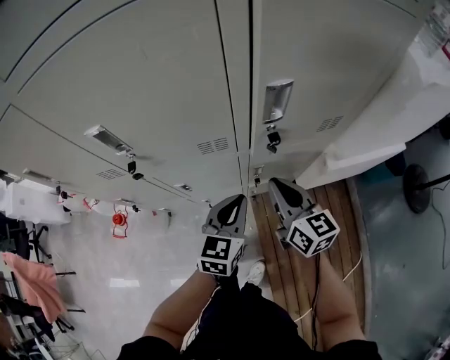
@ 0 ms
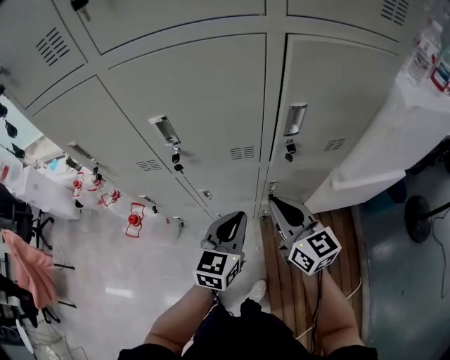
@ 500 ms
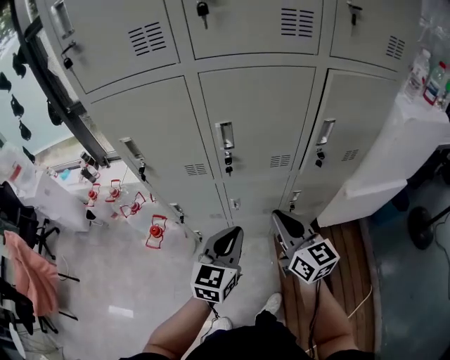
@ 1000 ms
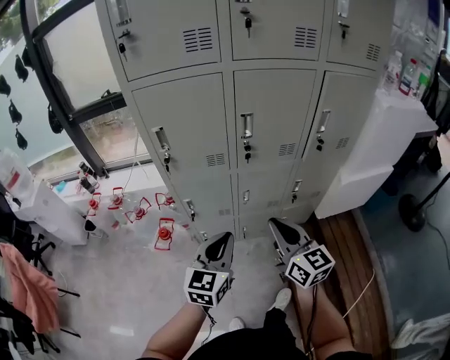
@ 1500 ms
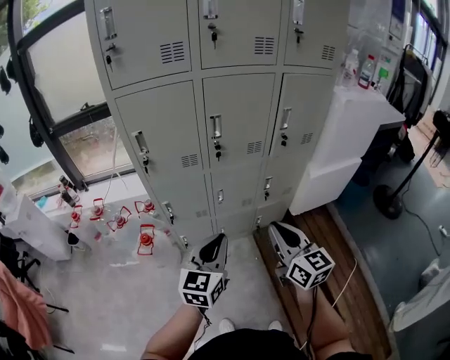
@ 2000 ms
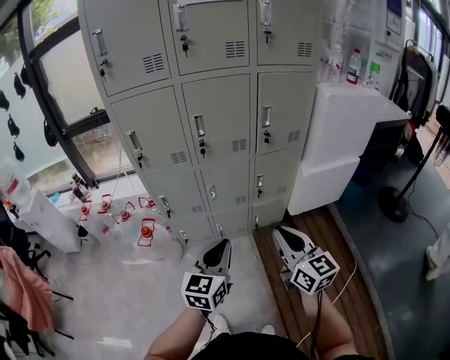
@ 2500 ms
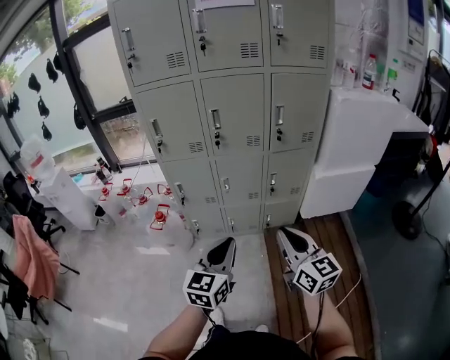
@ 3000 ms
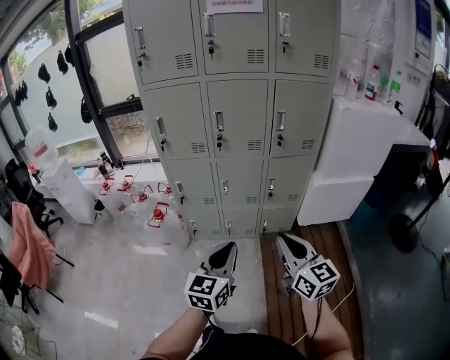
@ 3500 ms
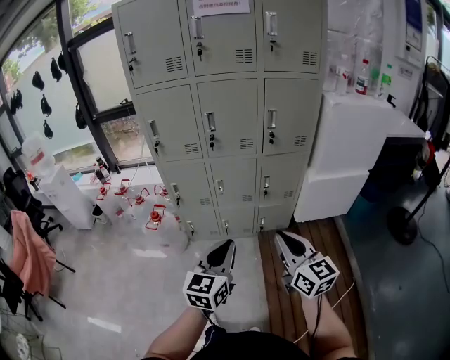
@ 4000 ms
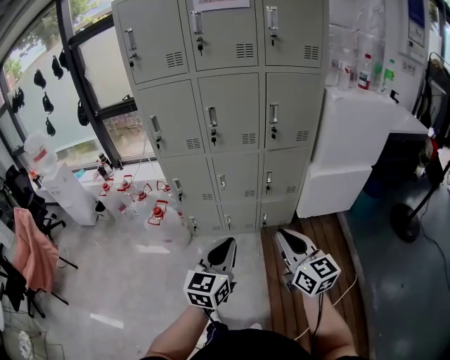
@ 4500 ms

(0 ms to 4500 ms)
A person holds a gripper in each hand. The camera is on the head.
0 ms - 2000 ms: The two grippers go roughly 40 cm backward, to the left and upward.
2000 ms - 4500 ms: Both grippers travel together backward and to the right, roughly 25 cm.

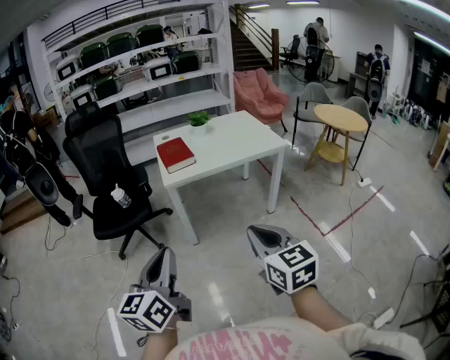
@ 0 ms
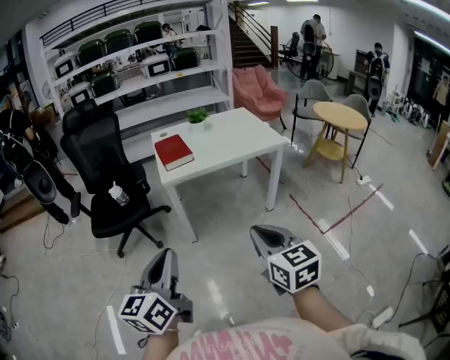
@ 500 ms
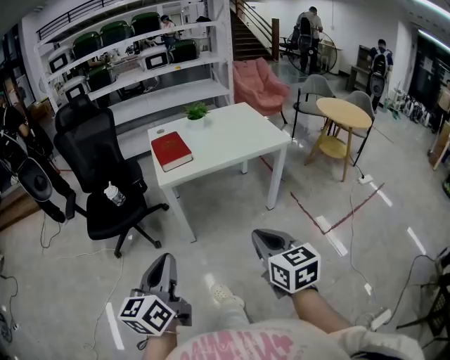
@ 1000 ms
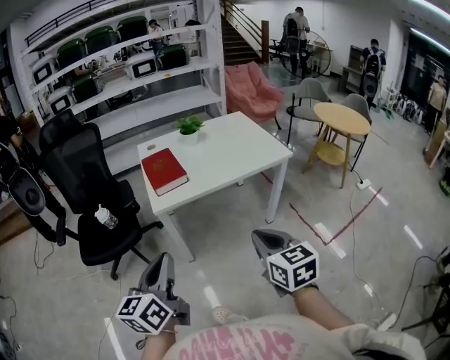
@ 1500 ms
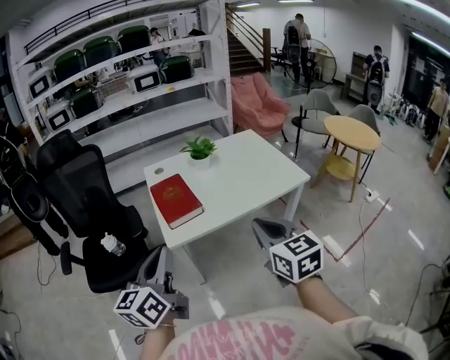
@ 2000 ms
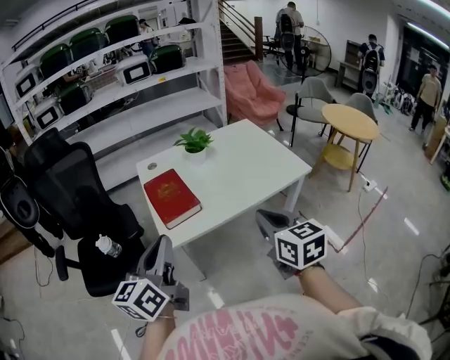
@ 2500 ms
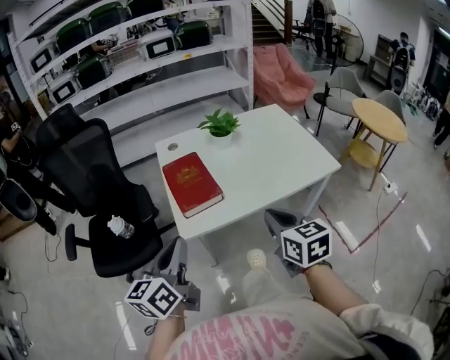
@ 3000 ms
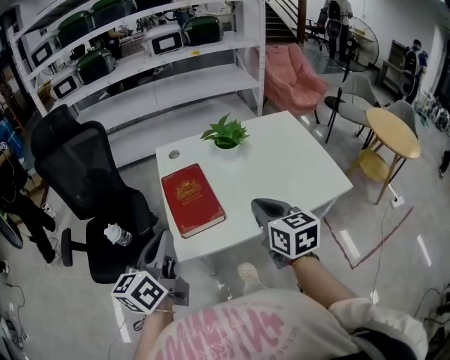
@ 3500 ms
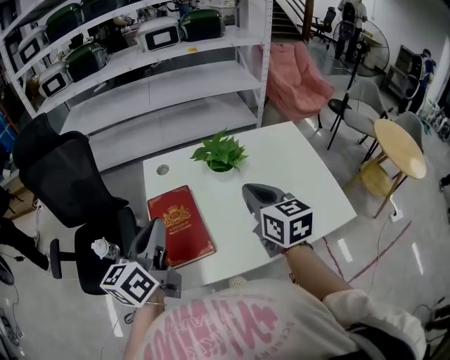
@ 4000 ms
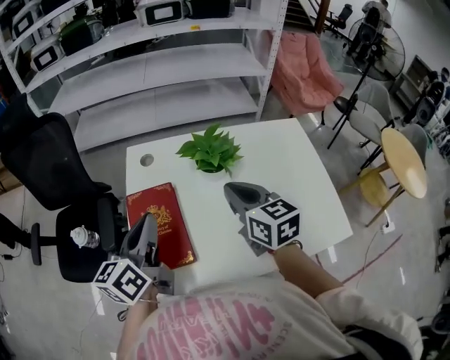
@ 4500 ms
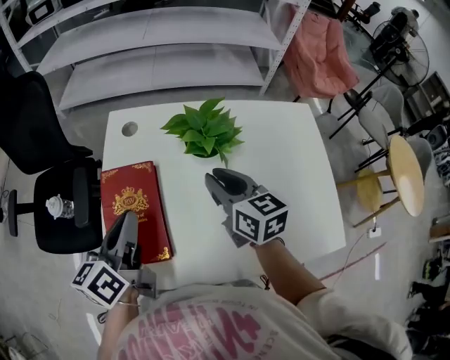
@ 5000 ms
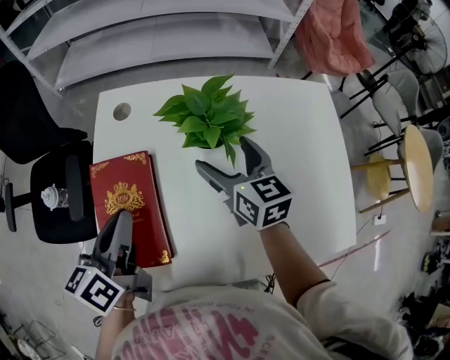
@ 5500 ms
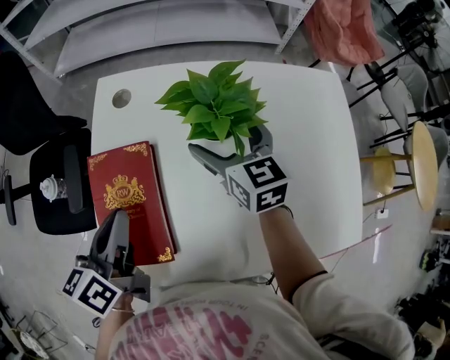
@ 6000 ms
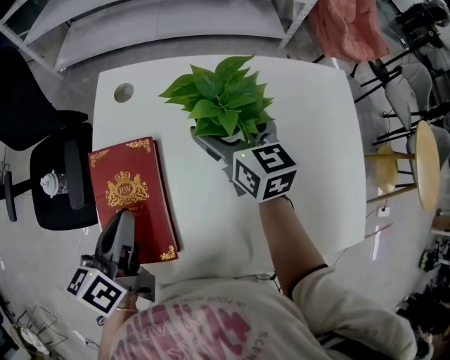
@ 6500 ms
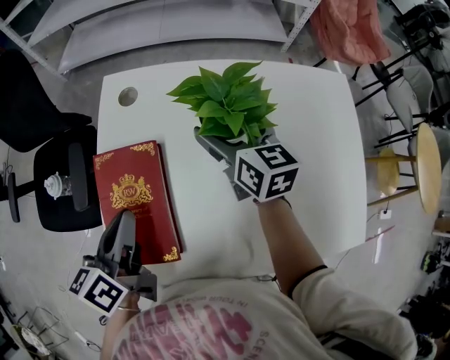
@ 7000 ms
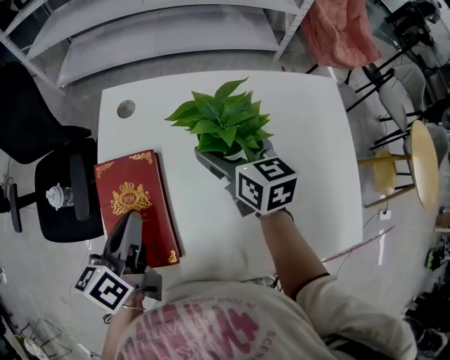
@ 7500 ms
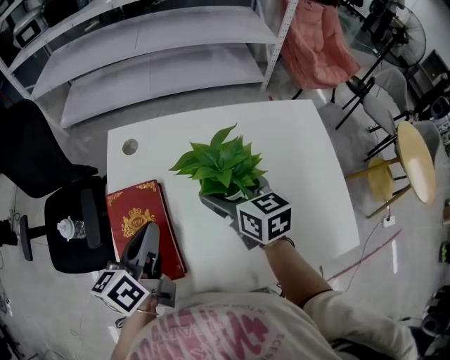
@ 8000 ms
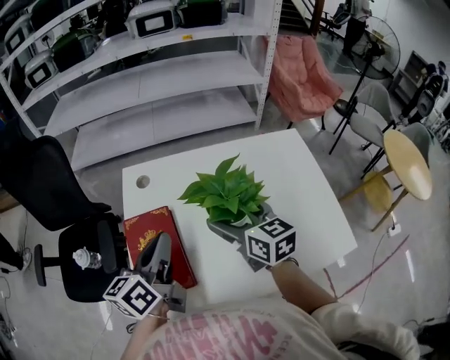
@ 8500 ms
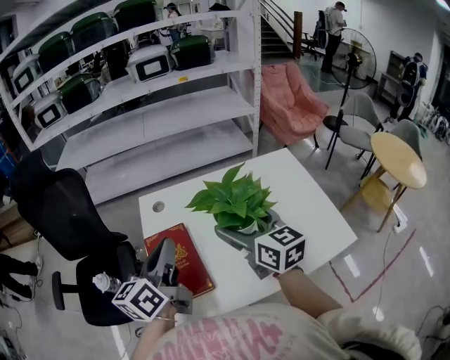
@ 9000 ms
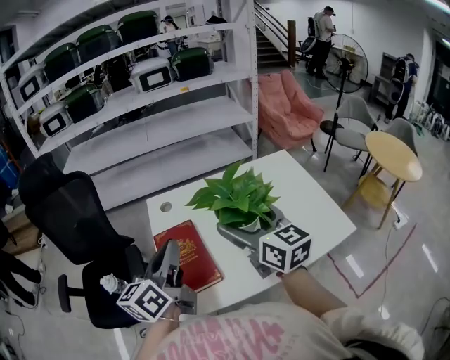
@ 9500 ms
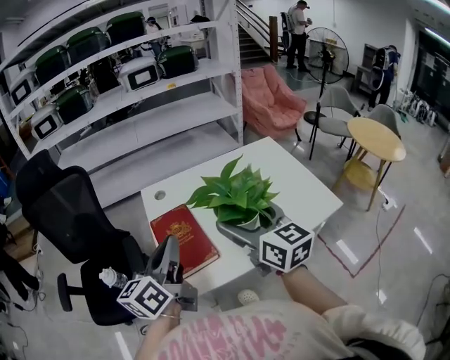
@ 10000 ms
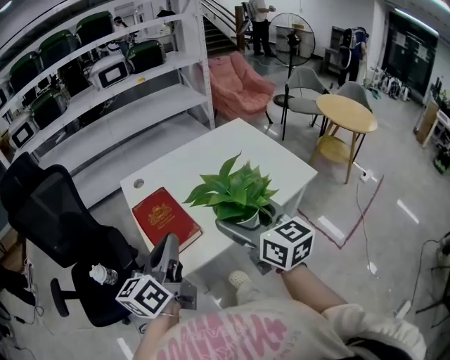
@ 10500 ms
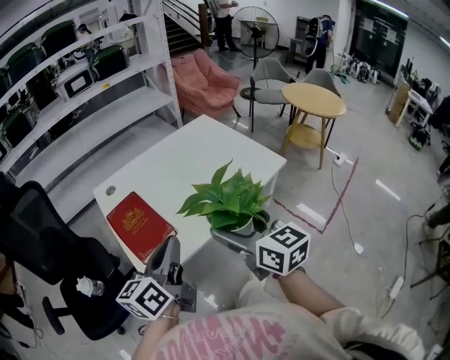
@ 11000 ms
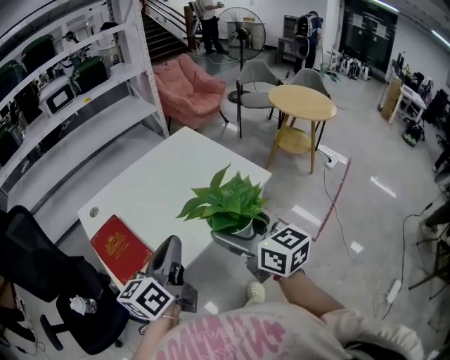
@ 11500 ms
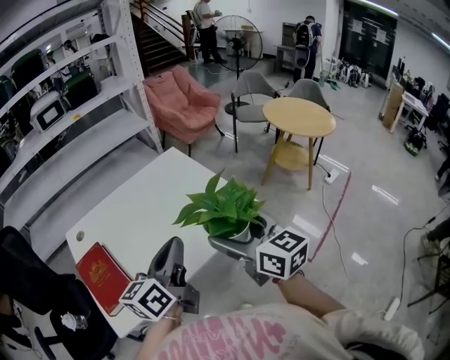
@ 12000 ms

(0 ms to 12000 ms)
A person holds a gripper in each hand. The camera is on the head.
0 ms - 2000 ms: Both grippers travel together forward, approximately 35 cm.
2000 ms - 4000 ms: The two grippers go about 35 cm forward.
4000 ms - 6000 ms: The right gripper is displaced forward and downward by about 25 cm, and opens, while the left gripper shifts about 15 cm downward and forward, and rotates approximately 20 degrees.
6000 ms - 8000 ms: The right gripper is displaced backward by about 5 cm; the left gripper shifts by about 5 cm.
8000 ms - 10000 ms: The left gripper is displaced backward and upward by approximately 20 cm, and turns by about 20 degrees, while the right gripper shifts roughly 30 cm backward and upward, and swivels about 30 degrees.
10000 ms - 12000 ms: Both grippers travel together to the right, approximately 30 cm. The left gripper changes its angle by some 20 degrees.

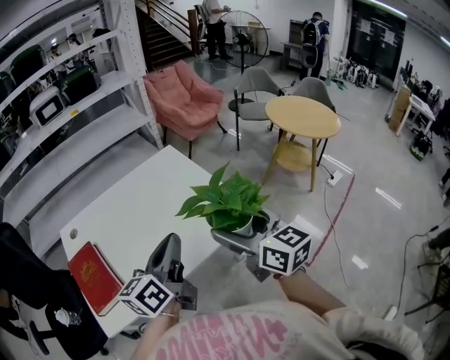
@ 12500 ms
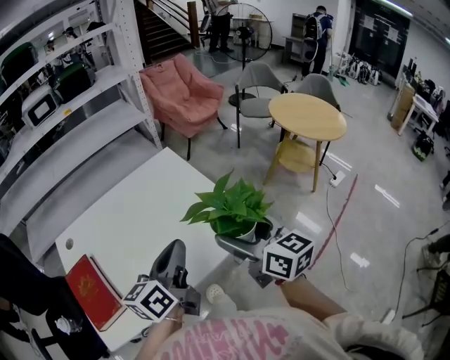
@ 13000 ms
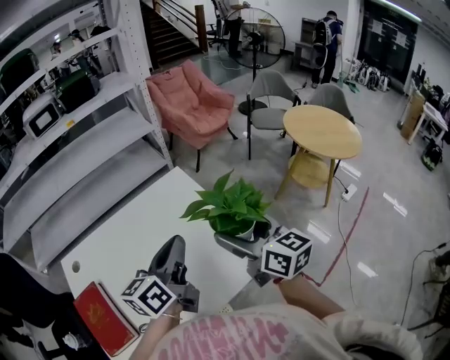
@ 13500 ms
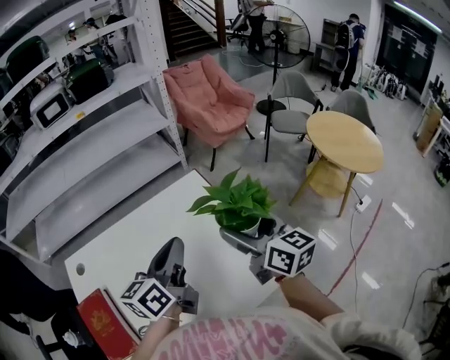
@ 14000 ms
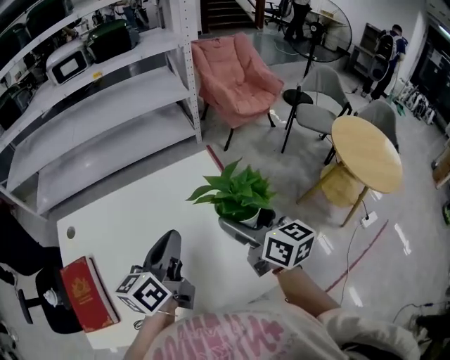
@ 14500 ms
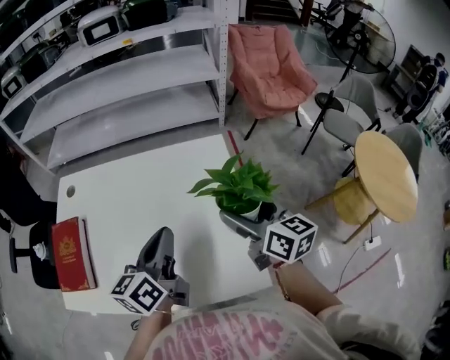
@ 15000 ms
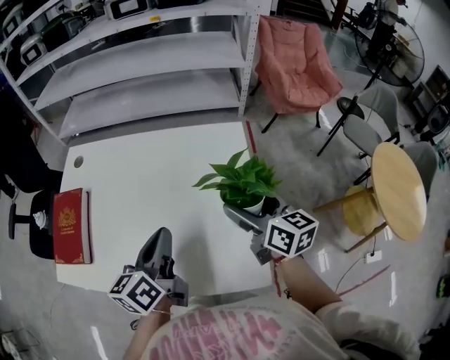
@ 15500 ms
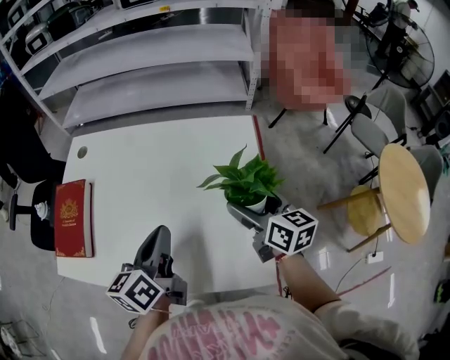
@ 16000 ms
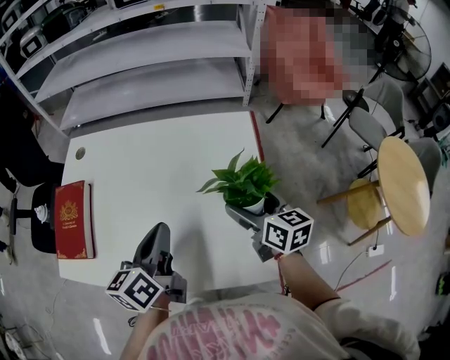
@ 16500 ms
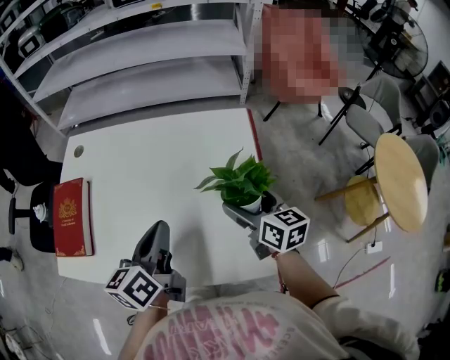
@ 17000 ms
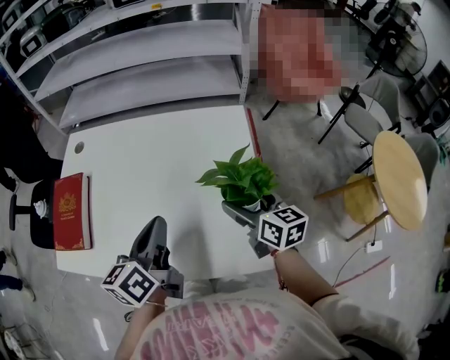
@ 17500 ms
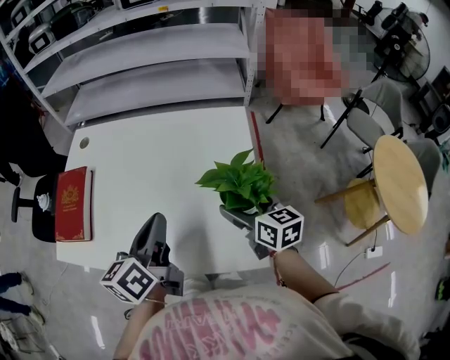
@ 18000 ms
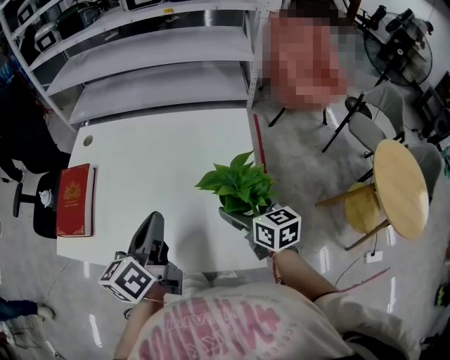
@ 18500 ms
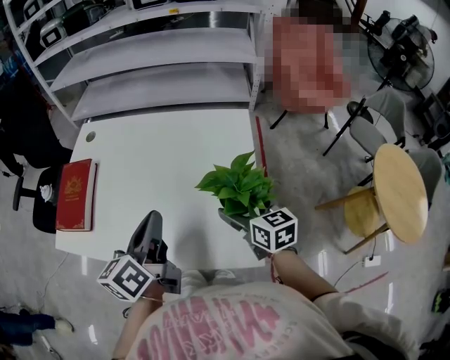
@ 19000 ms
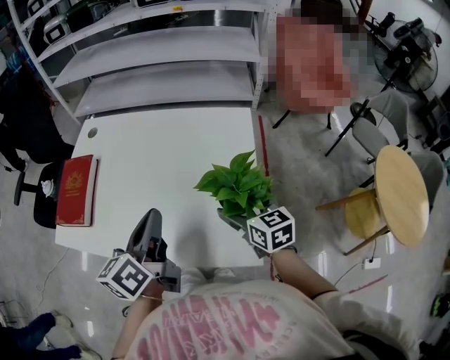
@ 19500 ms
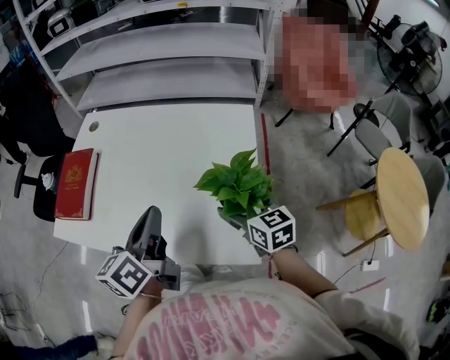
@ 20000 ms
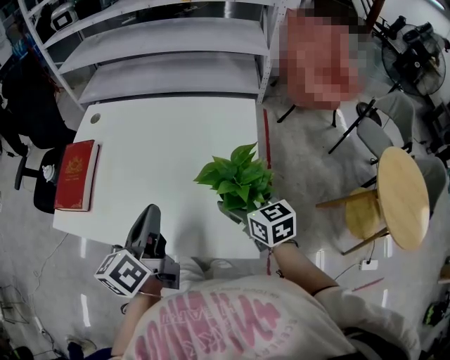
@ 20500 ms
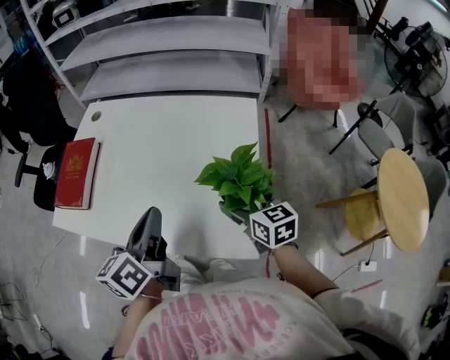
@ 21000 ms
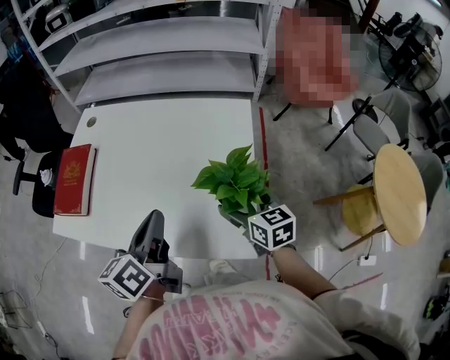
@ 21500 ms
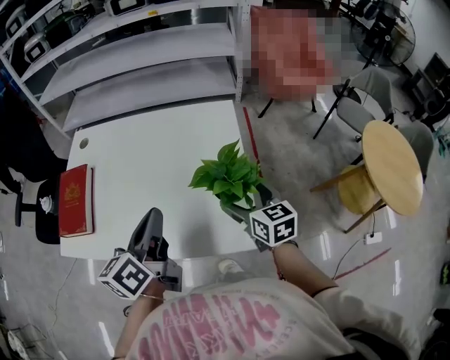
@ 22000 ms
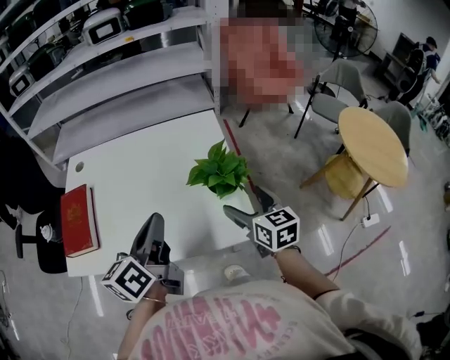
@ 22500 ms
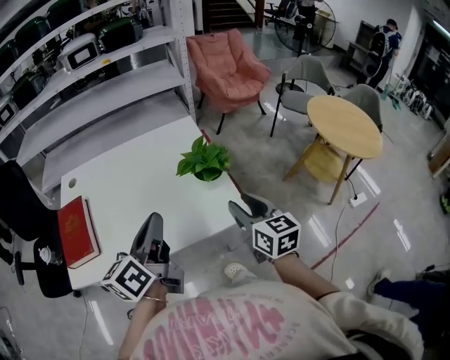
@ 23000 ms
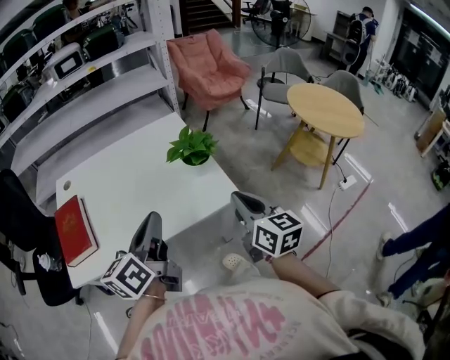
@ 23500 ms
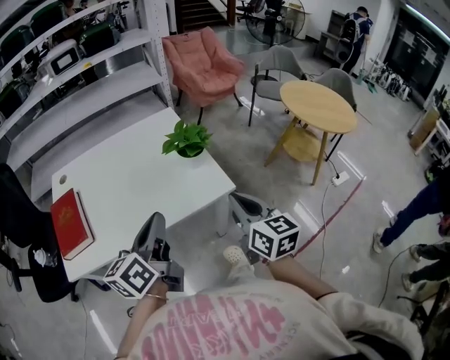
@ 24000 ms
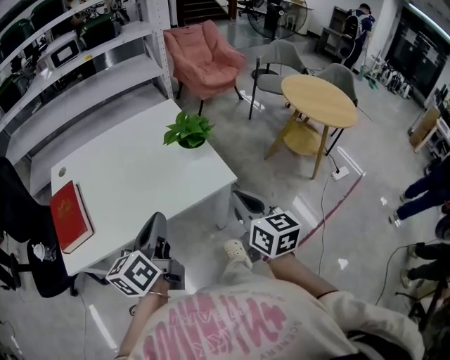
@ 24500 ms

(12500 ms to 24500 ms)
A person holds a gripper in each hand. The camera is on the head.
12500 ms - 14500 ms: The two grippers go roughly 30 cm forward.
14500 ms - 16500 ms: The left gripper travels downward, backward and to the left by about 10 cm, and changes its angle by some 30 degrees. Meanwhile the right gripper travels downward by roughly 10 cm, and turns by some 20 degrees.
16500 ms - 18500 ms: The left gripper shifts by approximately 5 cm. Meanwhile the right gripper moves some 5 cm.
18500 ms - 20500 ms: The grippers stay close to where they were, moving slightly.
20500 ms - 22500 ms: The right gripper heads backward and upward, covering some 10 cm, and swivels approximately 20 degrees.
22500 ms - 24500 ms: The left gripper heads backward, covering some 15 cm. The right gripper is displaced backward by roughly 20 cm, changes its angle by some 20 degrees, and closes up.
